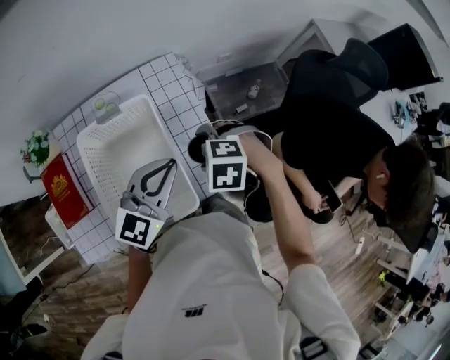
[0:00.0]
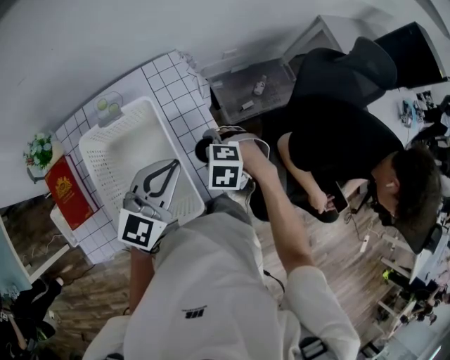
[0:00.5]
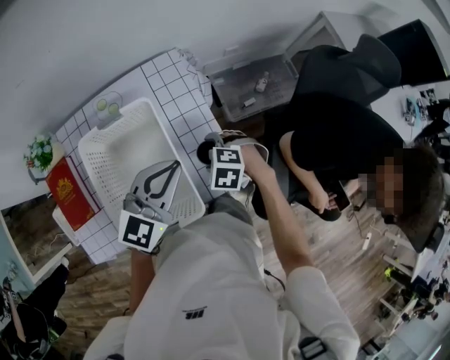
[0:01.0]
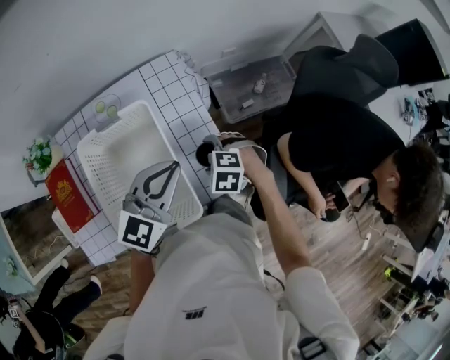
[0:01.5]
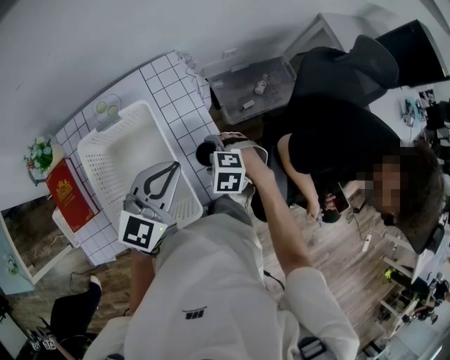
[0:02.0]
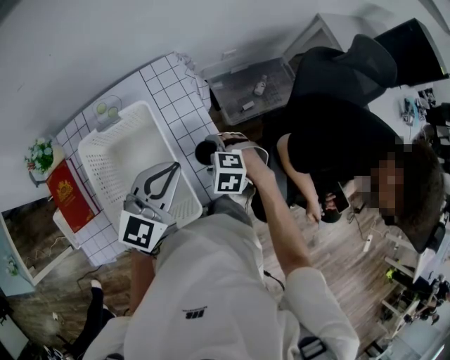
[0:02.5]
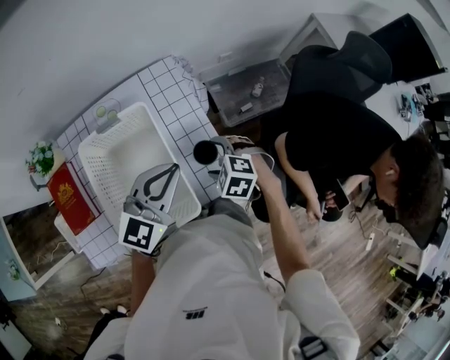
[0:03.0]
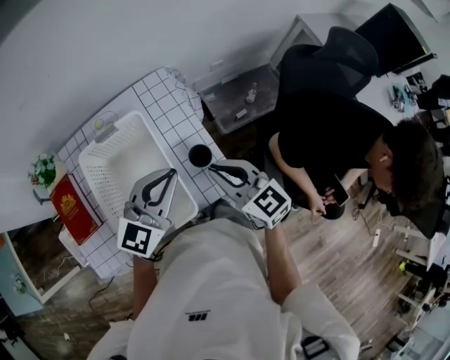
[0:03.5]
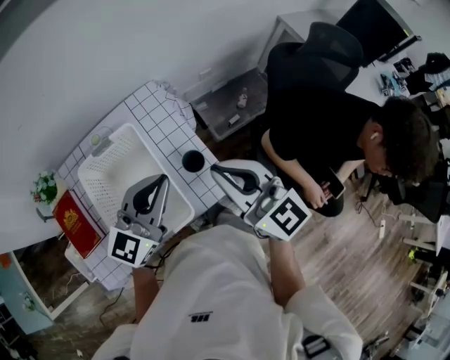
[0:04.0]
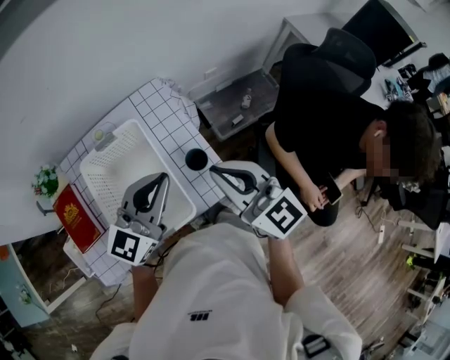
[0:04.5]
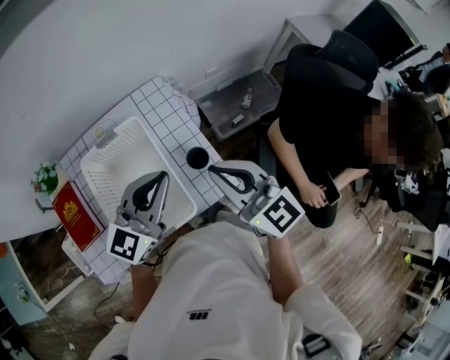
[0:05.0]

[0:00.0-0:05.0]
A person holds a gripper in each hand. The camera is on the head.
0:00.0 to 0:02.5: The right gripper shifts roughly 10 cm downward.
0:02.5 to 0:05.0: The left gripper travels upward by some 5 cm; the right gripper heads upward, covering approximately 30 cm, tips its fingers upward by some 70 degrees, and closes.

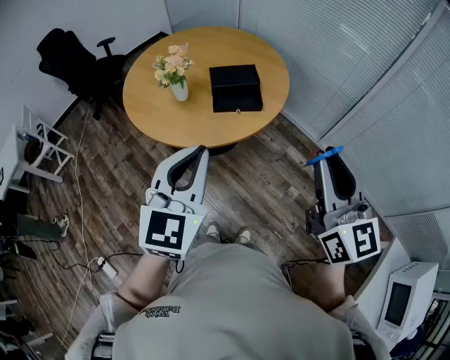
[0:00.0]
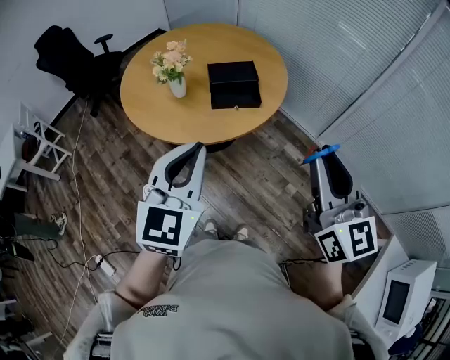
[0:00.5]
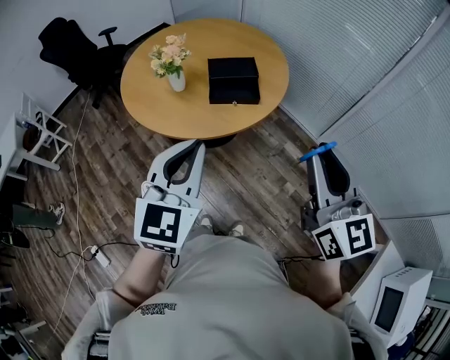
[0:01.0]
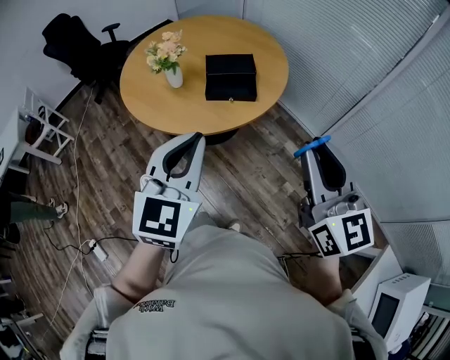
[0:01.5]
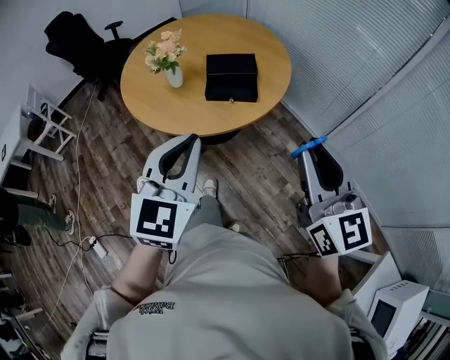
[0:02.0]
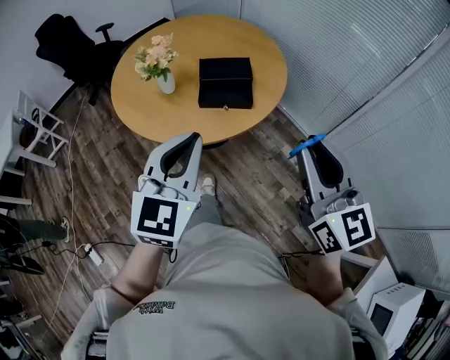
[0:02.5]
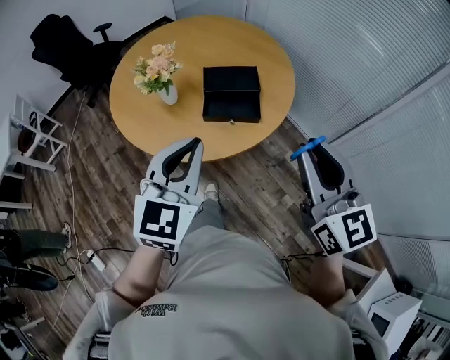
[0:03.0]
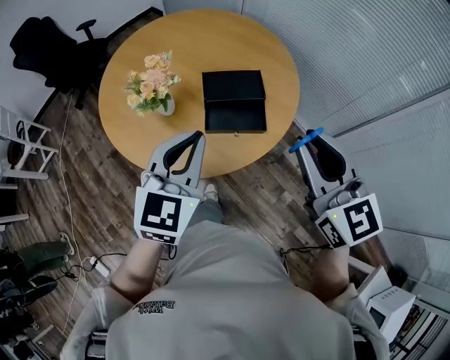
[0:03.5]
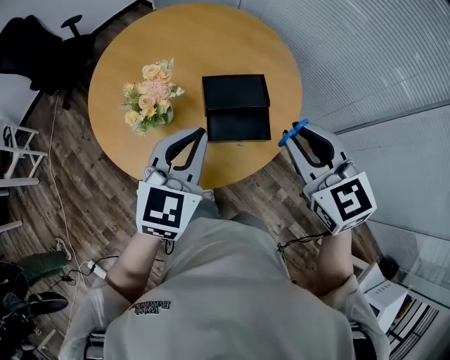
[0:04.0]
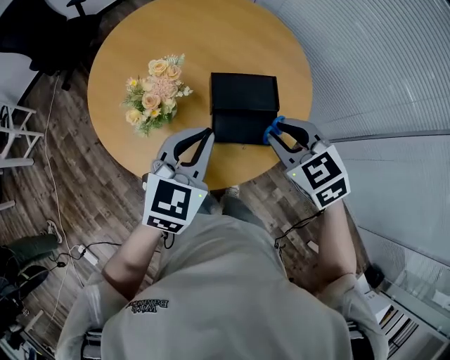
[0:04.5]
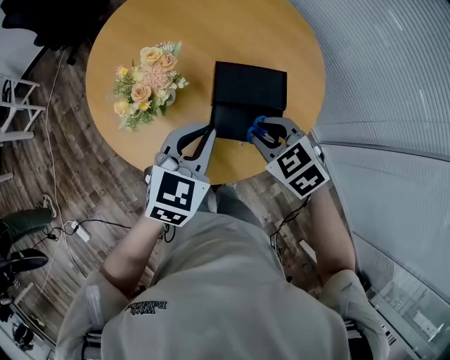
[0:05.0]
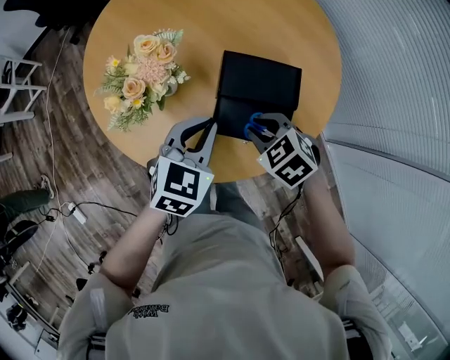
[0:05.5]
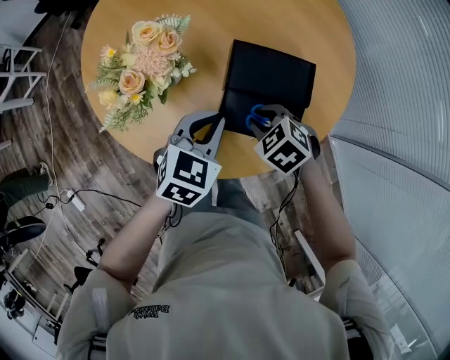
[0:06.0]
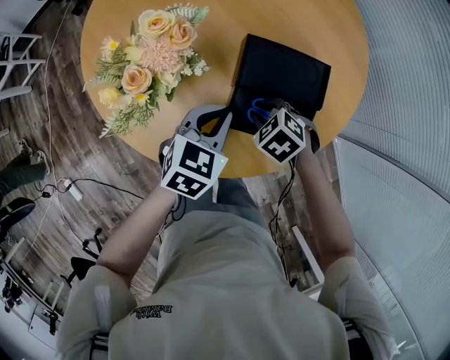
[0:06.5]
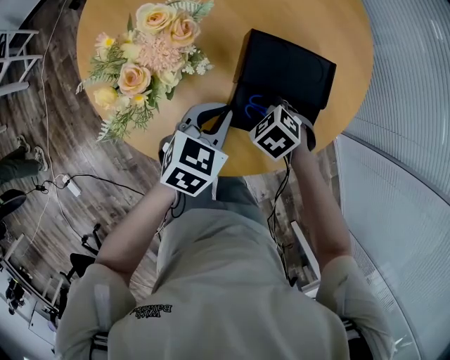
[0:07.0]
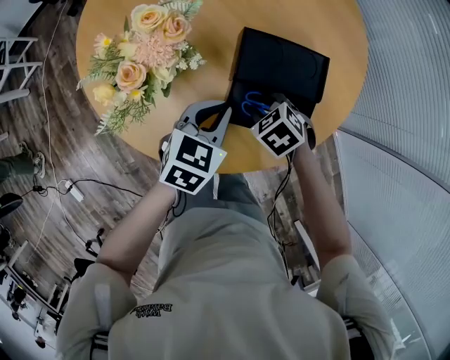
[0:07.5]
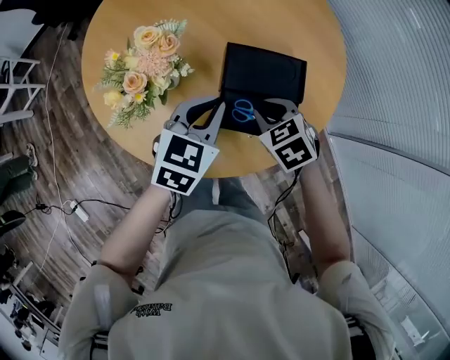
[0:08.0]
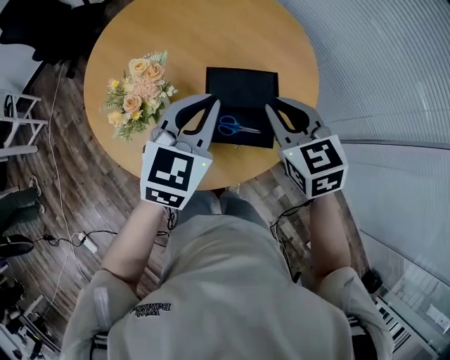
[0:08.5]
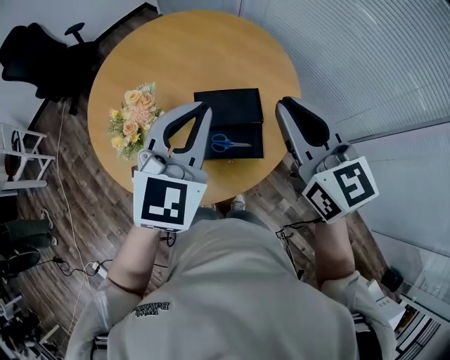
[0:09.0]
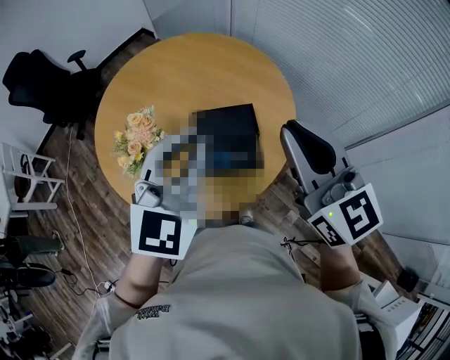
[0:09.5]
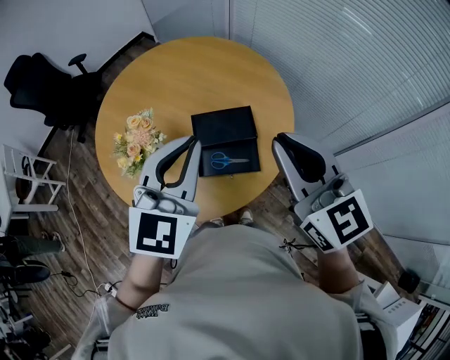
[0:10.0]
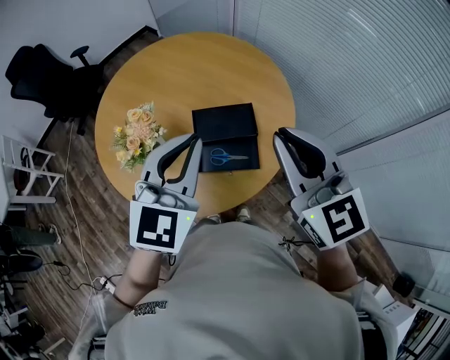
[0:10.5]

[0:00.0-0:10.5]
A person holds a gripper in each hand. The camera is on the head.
0:00.0 to 0:02.0: The right gripper shifts by roughly 5 cm. Meanwhile the left gripper goes about 5 cm to the right.
0:02.0 to 0:04.0: Both grippers travel together forward, roughly 30 cm. The right gripper changes its angle by some 30 degrees.
0:04.0 to 0:06.5: The left gripper is displaced downward by roughly 25 cm, and changes its angle by about 30 degrees. The right gripper travels downward by some 40 cm, and tilts its fingers approximately 50 degrees downward.
0:06.5 to 0:08.5: Both grippers travel together upward, approximately 25 cm. The right gripper points its fingers about 40 degrees further upward. Meanwhile the left gripper swivels approximately 20 degrees.
0:08.5 to 0:10.5: Both grippers travel together upward and backward, roughly 15 cm. The right gripper changes its angle by approximately 30 degrees.

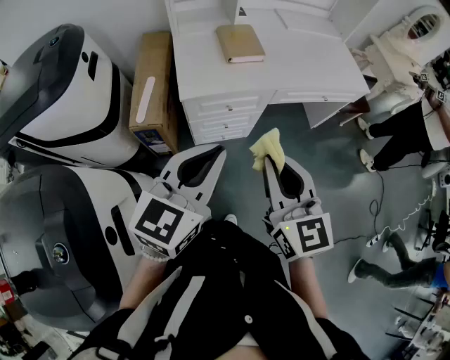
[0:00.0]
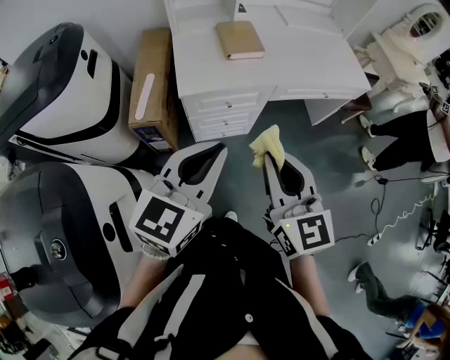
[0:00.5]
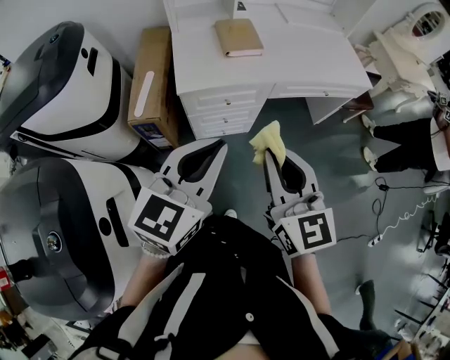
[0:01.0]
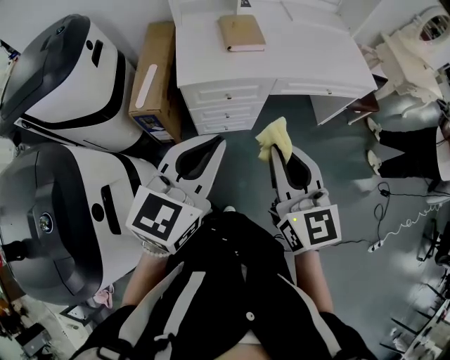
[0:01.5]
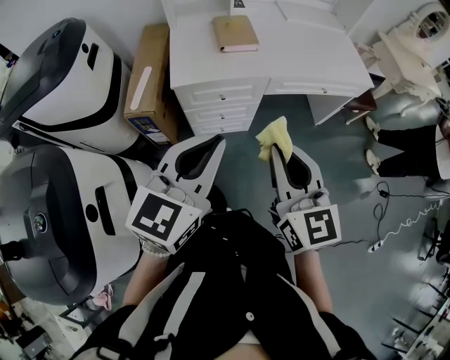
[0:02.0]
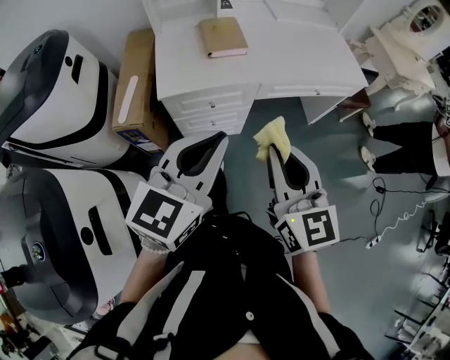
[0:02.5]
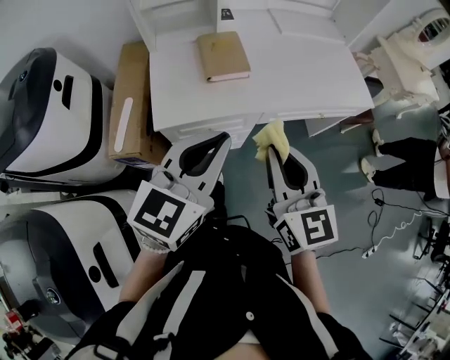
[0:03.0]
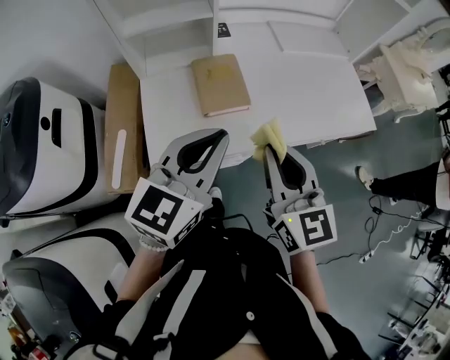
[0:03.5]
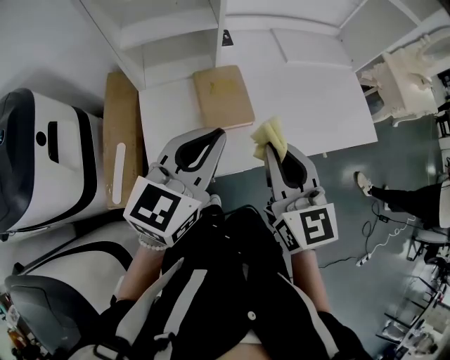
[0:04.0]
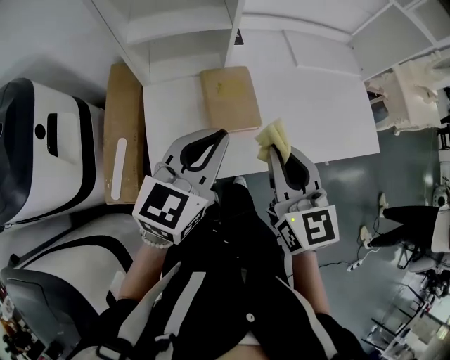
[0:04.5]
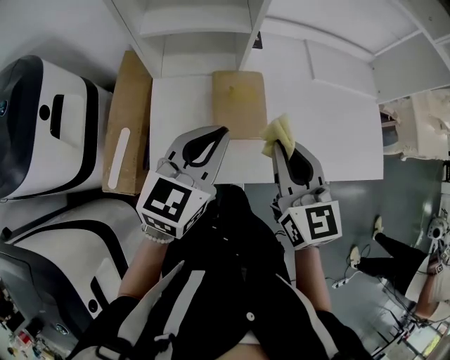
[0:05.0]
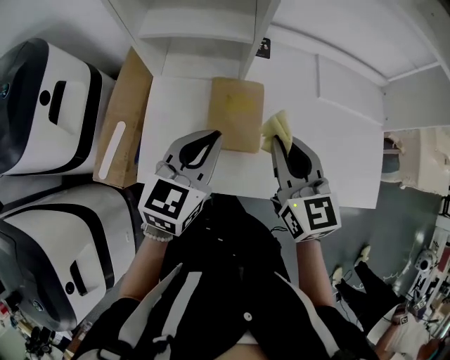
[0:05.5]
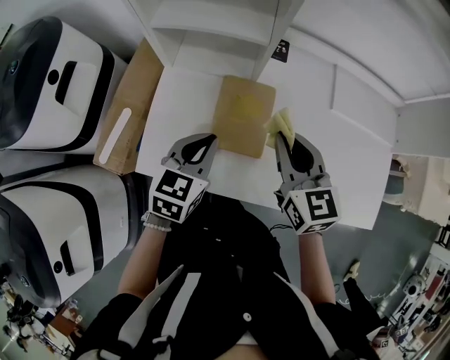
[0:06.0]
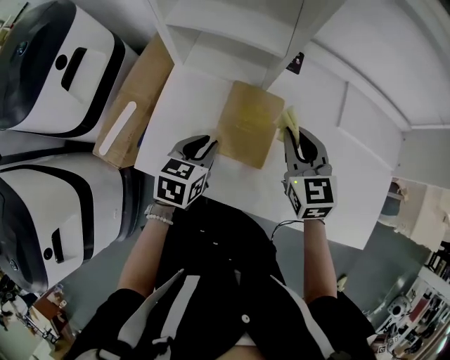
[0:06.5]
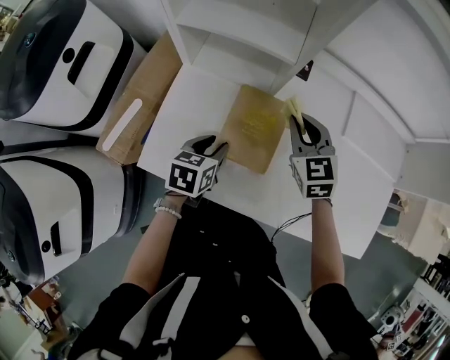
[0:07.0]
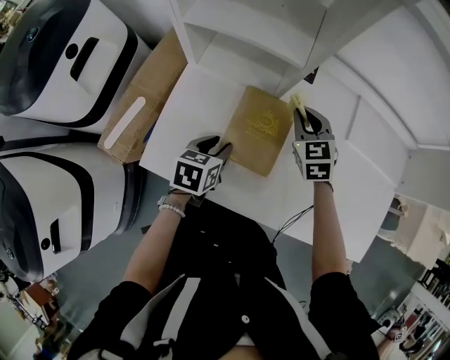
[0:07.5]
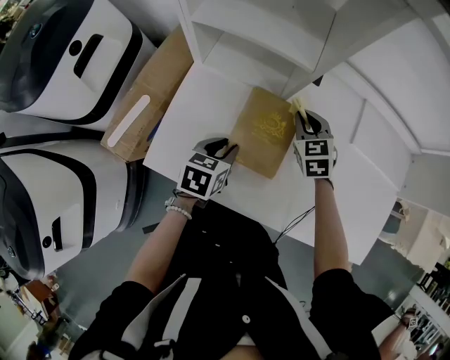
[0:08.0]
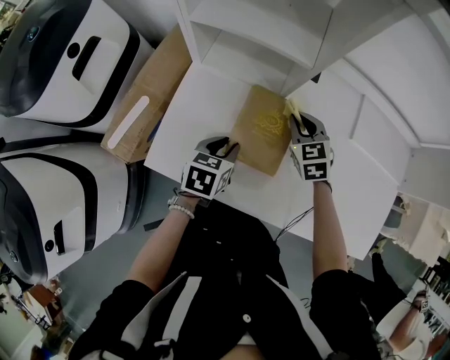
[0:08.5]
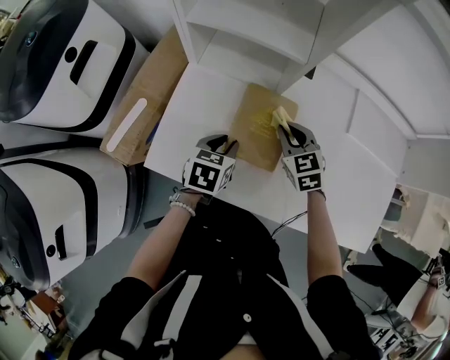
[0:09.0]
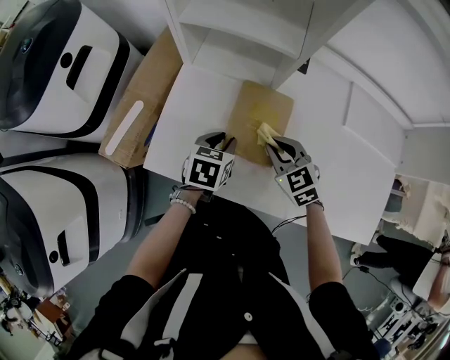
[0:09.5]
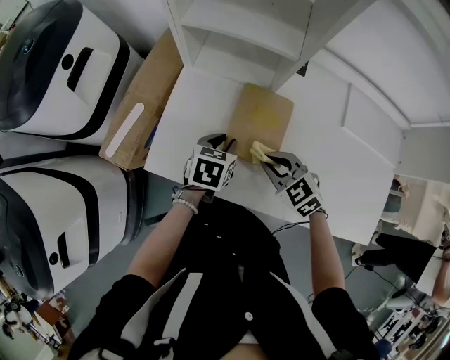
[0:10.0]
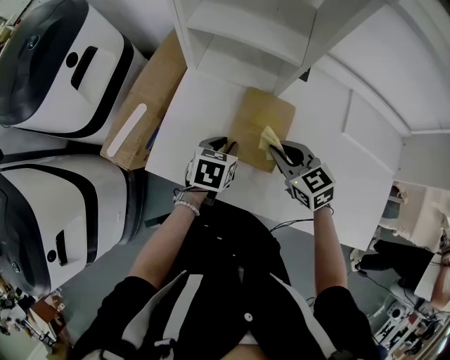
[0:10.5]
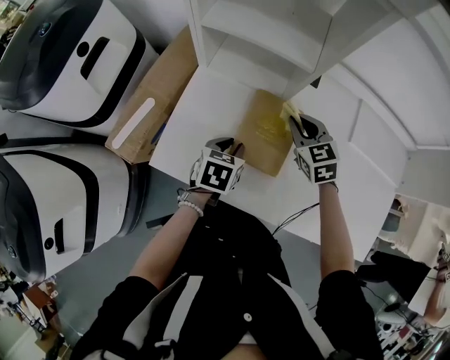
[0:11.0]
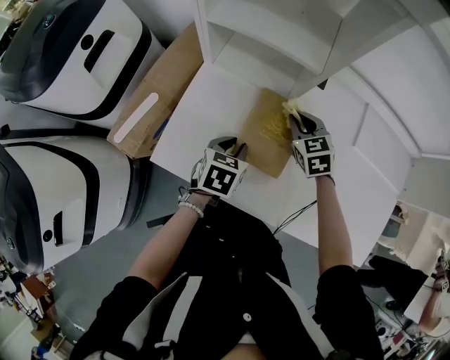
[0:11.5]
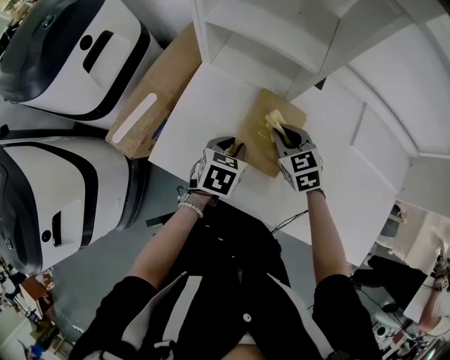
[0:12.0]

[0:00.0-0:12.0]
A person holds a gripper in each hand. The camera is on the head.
0:00.0 to 0:02.0: Both grippers move to the right, about 10 cm.
0:02.0 to 0:04.0: Both grippers travel together forward, approximately 40 cm.
0:04.0 to 0:06.0: The right gripper moves some 20 cm, and changes its angle by some 30 degrees; the left gripper heads downward, covering some 15 cm, and rotates some 40 degrees.
0:06.0 to 0:08.0: The right gripper is displaced downward and forward by about 20 cm, and rotates about 30 degrees. Meanwhile the left gripper heads downward, covering approximately 10 cm, turns by approximately 20 degrees, and opens its fingers.
0:08.0 to 0:10.0: The right gripper travels backward by roughly 20 cm, and rotates some 30 degrees.
0:10.0 to 0:12.0: The right gripper shifts about 10 cm forward.
